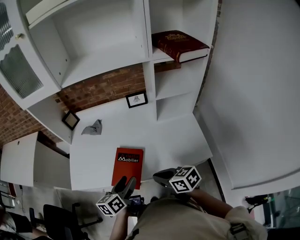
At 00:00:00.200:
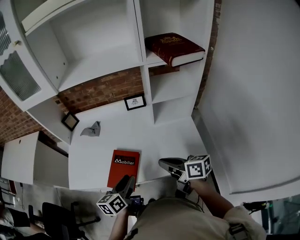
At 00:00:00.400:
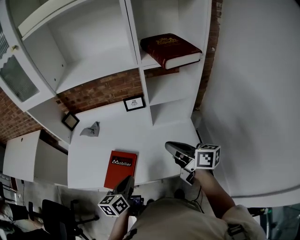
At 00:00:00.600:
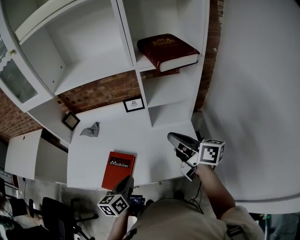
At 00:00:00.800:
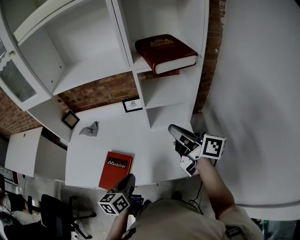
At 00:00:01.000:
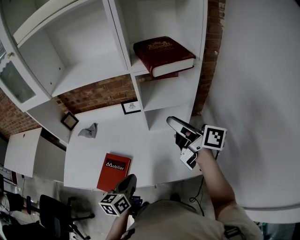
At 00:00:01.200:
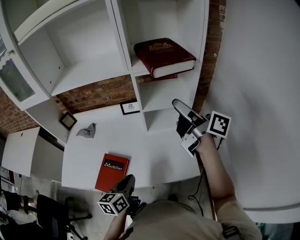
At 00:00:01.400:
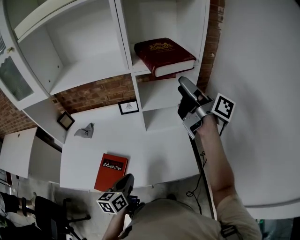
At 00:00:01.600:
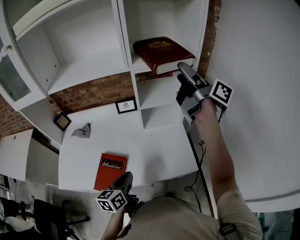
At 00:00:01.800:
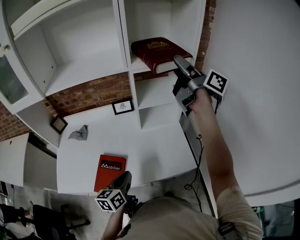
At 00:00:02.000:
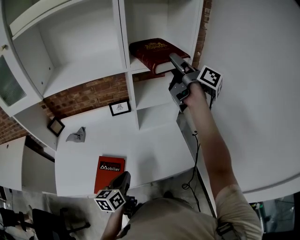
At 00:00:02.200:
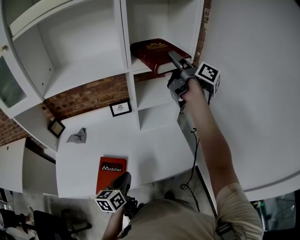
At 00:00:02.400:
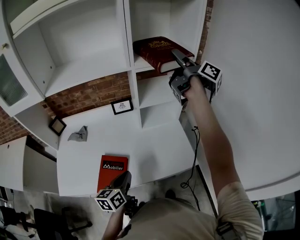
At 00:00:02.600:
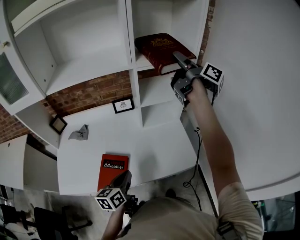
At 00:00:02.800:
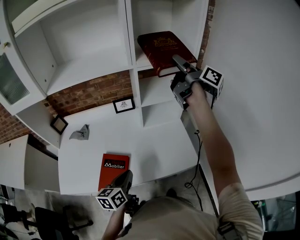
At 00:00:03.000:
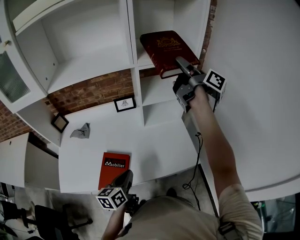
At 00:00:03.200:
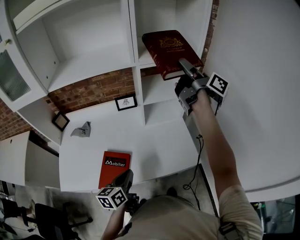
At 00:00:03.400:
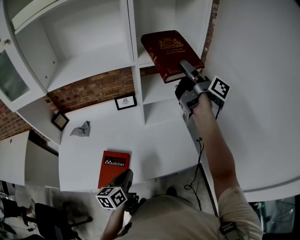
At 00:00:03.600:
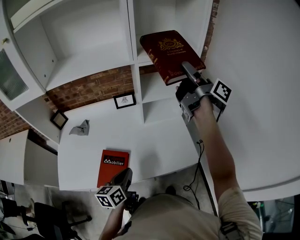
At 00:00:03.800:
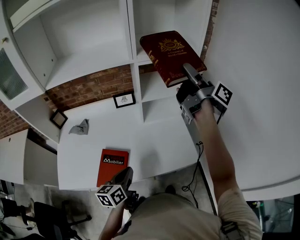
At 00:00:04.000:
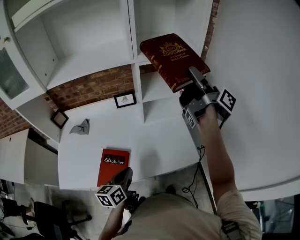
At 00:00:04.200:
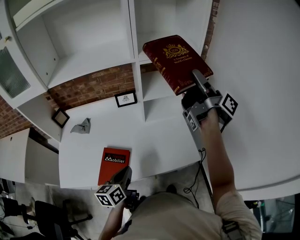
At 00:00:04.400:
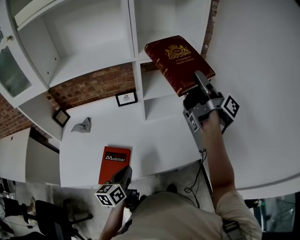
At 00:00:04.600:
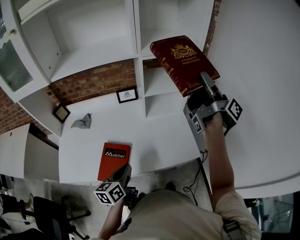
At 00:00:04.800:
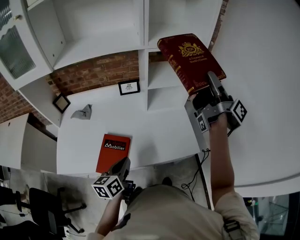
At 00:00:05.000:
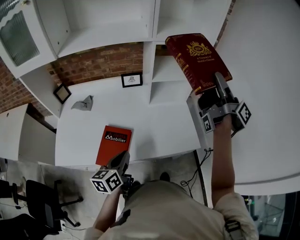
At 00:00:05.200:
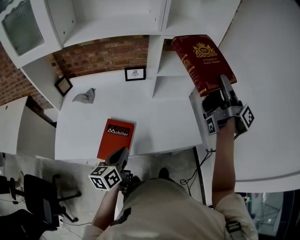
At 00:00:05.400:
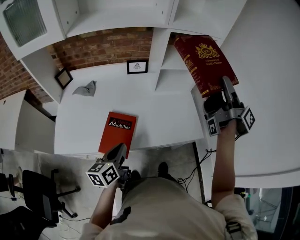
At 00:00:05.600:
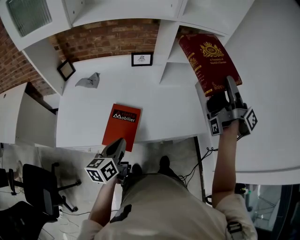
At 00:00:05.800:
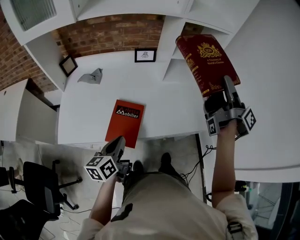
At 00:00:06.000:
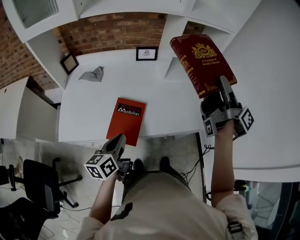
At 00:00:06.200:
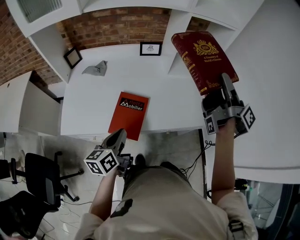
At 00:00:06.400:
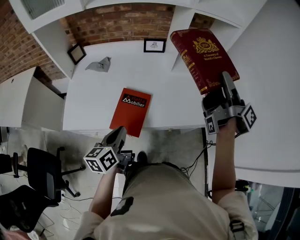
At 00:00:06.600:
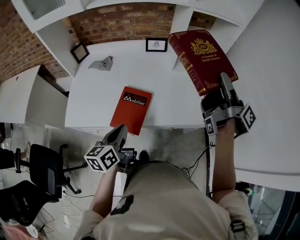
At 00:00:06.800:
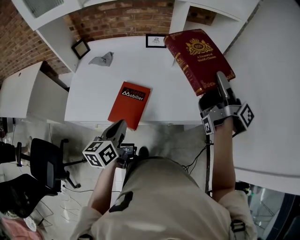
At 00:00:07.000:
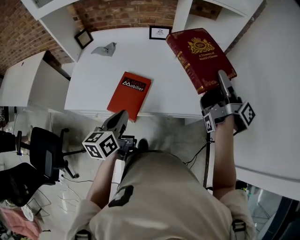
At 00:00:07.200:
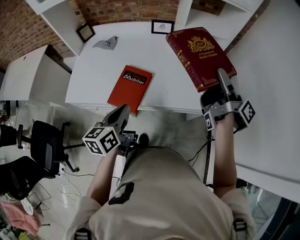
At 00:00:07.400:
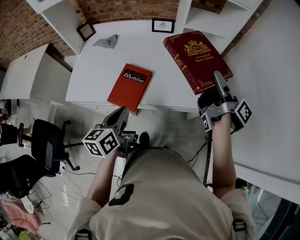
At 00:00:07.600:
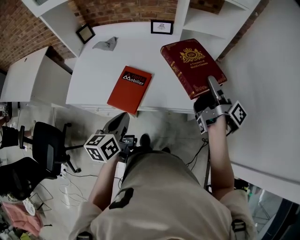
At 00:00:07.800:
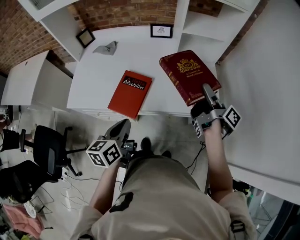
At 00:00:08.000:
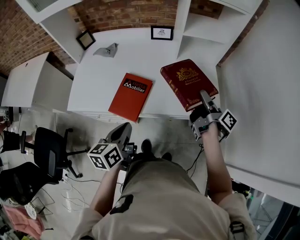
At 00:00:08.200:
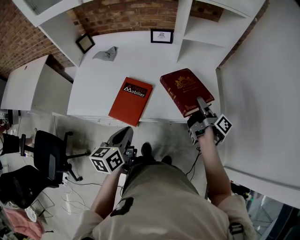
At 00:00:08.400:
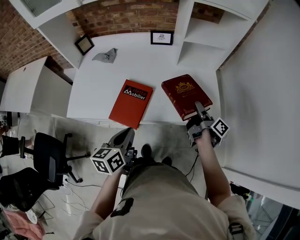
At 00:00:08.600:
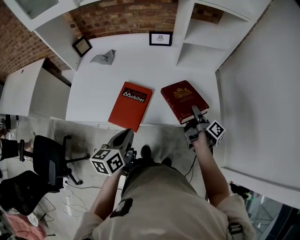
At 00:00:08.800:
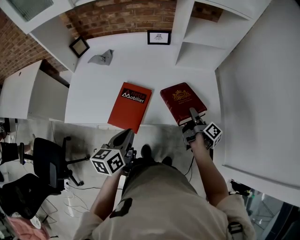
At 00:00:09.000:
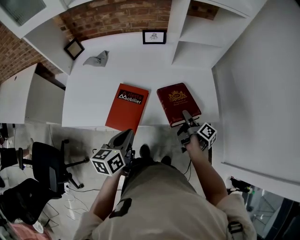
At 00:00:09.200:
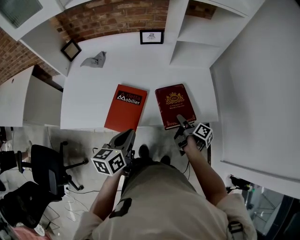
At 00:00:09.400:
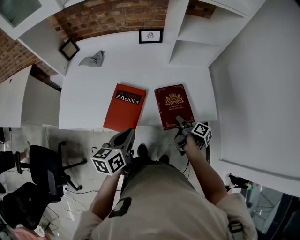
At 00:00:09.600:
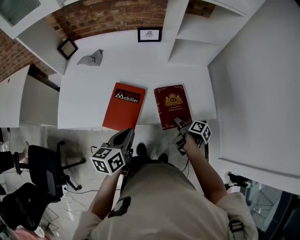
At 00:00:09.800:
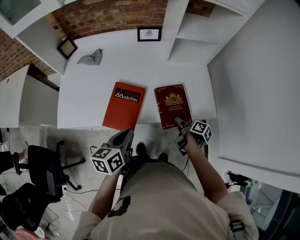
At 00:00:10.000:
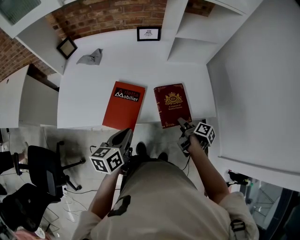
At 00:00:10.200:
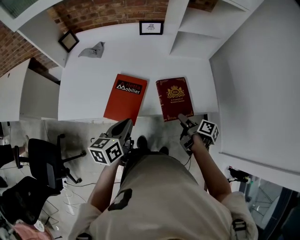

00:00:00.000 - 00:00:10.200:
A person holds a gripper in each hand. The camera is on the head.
00:00:00.000 - 00:00:01.400: The left gripper heads to the right, covering about 15 cm, and closes. Meanwhile the right gripper heads to the right, upward and forward, covering roughly 50 cm, tilts its fingers approximately 50 degrees upward, and opens its fingers.
00:00:03.000 - 00:00:04.400: The right gripper is displaced backward by approximately 10 cm.
00:00:04.400 - 00:00:05.800: The right gripper heads backward, downward and to the left, covering approximately 15 cm, while the left gripper goes roughly 15 cm to the left and backward.
00:00:05.800 - 00:00:07.200: The right gripper travels downward by some 10 cm. Meanwhile the left gripper shifts by about 5 cm.
00:00:07.200 - 00:00:08.800: The right gripper heads downward, covering about 25 cm, and changes its angle by approximately 30 degrees.
00:00:08.800 - 00:00:10.200: The right gripper shifts approximately 10 cm backward, and swivels roughly 20 degrees.

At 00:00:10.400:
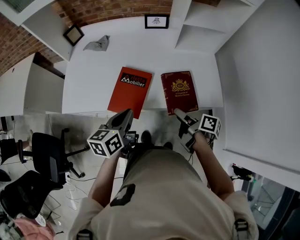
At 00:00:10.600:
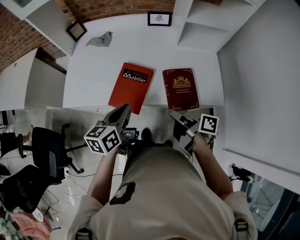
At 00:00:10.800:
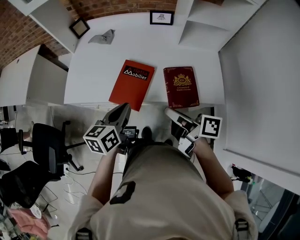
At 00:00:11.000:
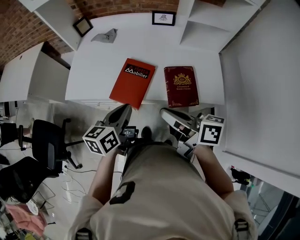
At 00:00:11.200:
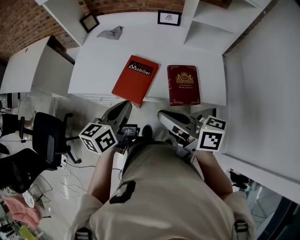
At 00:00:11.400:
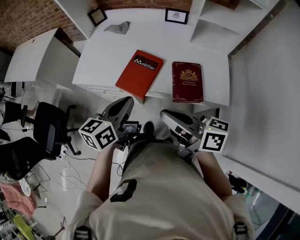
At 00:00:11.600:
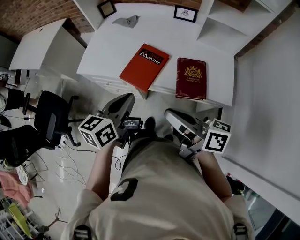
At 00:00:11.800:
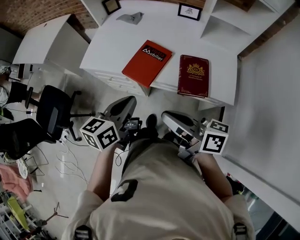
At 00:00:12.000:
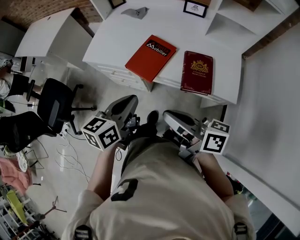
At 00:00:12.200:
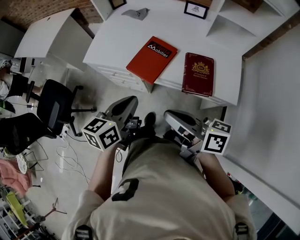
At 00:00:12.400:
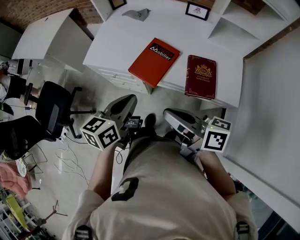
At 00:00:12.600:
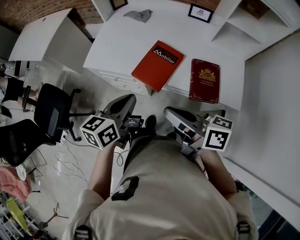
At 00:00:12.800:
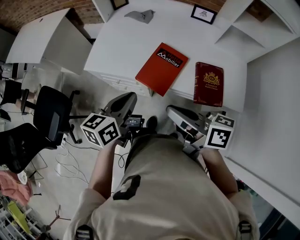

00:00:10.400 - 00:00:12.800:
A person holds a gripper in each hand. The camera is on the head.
00:00:10.400 - 00:00:11.600: The left gripper is displaced backward and upward by roughly 10 cm. Meanwhile the right gripper heads upward, to the left and backward, covering about 25 cm, swivels some 50 degrees, and closes.
00:00:11.600 - 00:00:12.800: The grippers both shift to the left and forward by about 10 cm.

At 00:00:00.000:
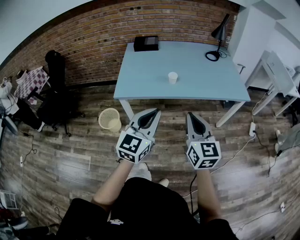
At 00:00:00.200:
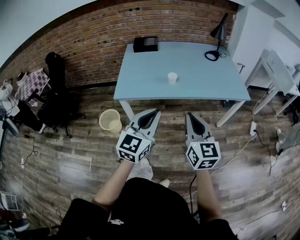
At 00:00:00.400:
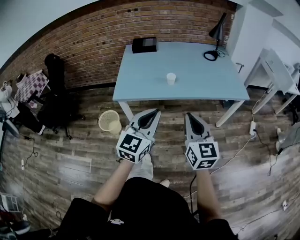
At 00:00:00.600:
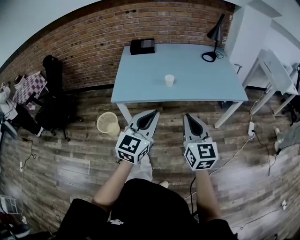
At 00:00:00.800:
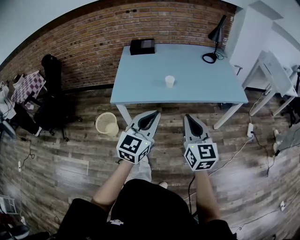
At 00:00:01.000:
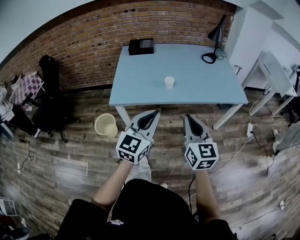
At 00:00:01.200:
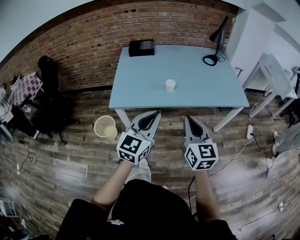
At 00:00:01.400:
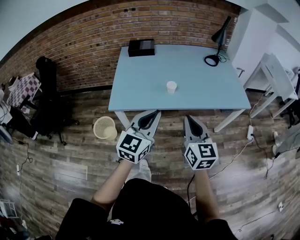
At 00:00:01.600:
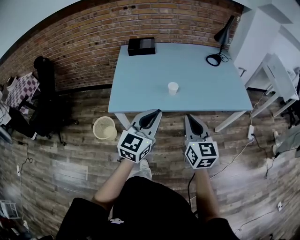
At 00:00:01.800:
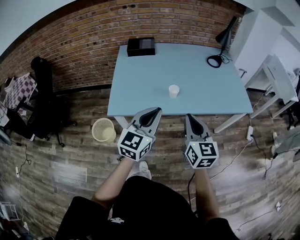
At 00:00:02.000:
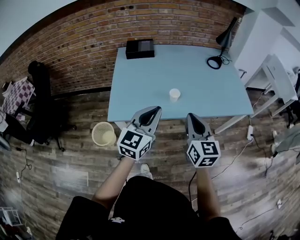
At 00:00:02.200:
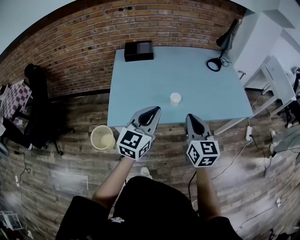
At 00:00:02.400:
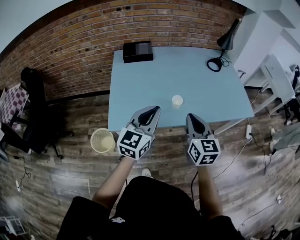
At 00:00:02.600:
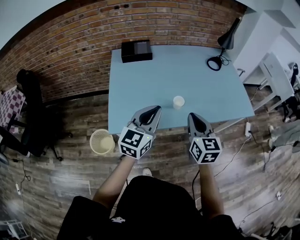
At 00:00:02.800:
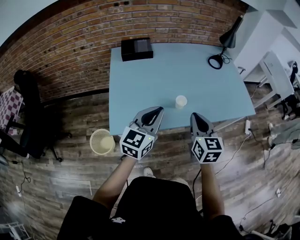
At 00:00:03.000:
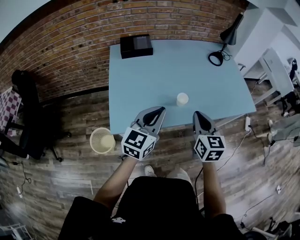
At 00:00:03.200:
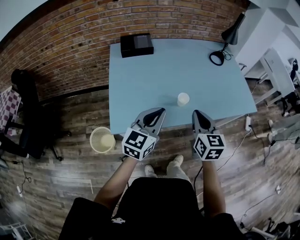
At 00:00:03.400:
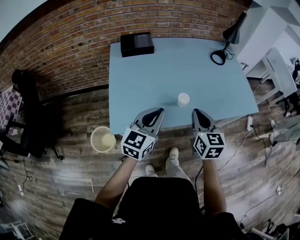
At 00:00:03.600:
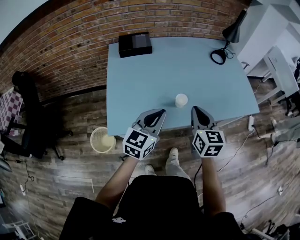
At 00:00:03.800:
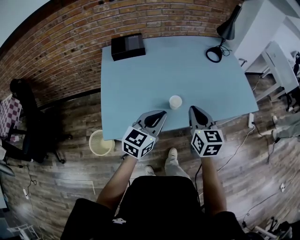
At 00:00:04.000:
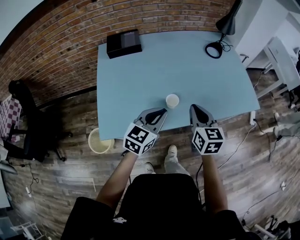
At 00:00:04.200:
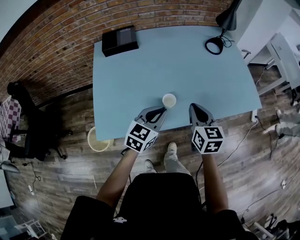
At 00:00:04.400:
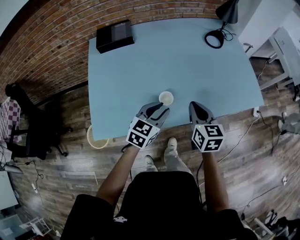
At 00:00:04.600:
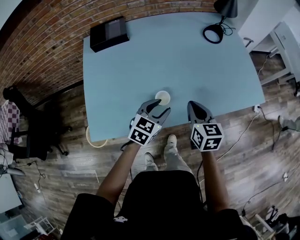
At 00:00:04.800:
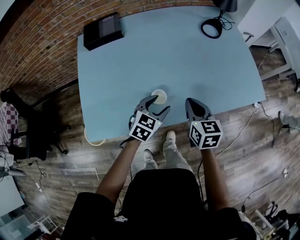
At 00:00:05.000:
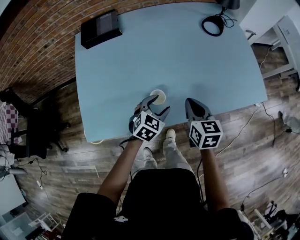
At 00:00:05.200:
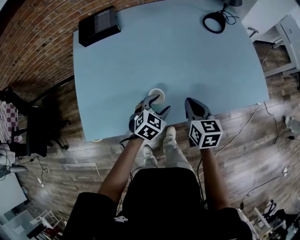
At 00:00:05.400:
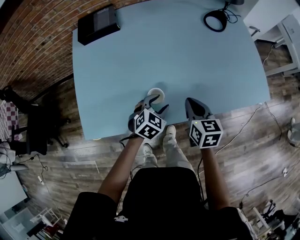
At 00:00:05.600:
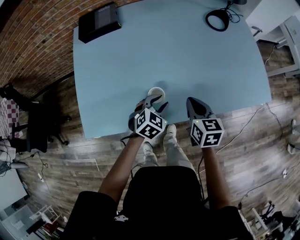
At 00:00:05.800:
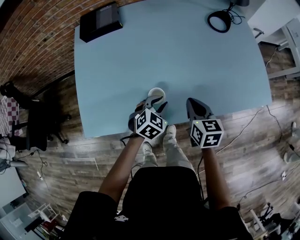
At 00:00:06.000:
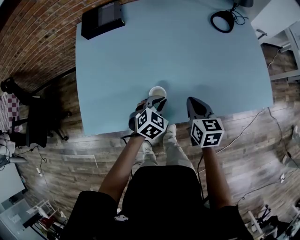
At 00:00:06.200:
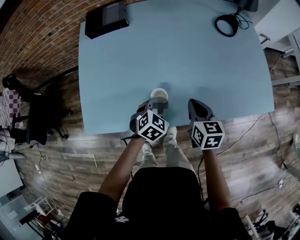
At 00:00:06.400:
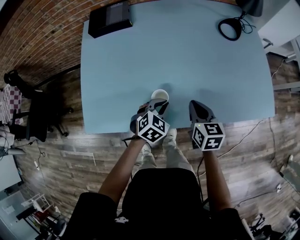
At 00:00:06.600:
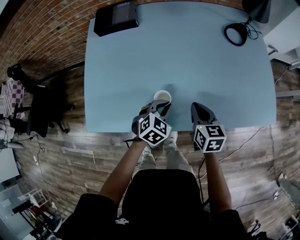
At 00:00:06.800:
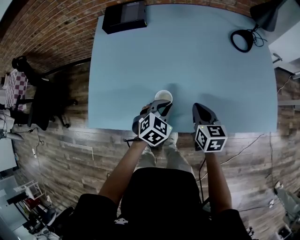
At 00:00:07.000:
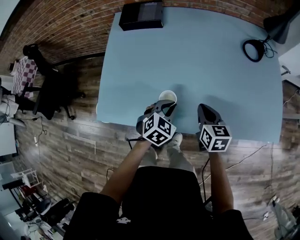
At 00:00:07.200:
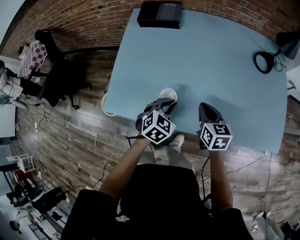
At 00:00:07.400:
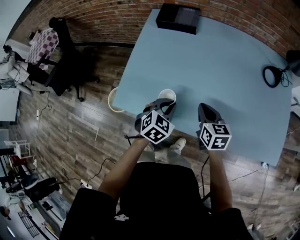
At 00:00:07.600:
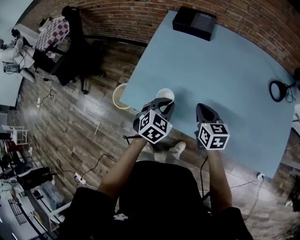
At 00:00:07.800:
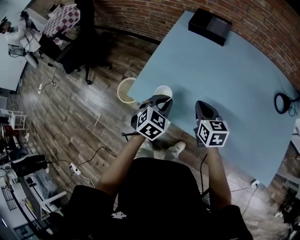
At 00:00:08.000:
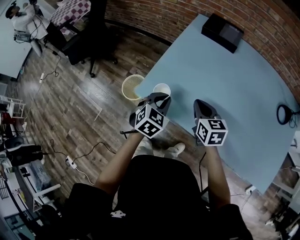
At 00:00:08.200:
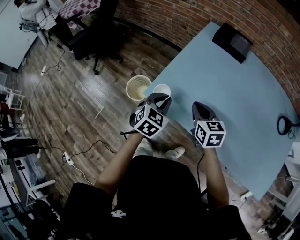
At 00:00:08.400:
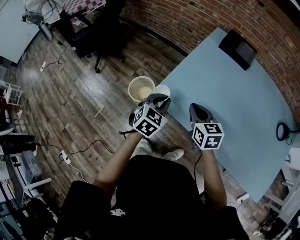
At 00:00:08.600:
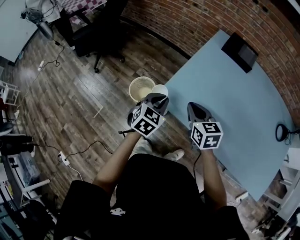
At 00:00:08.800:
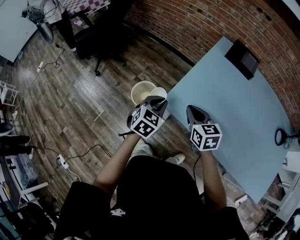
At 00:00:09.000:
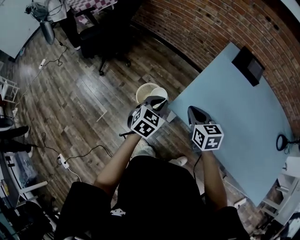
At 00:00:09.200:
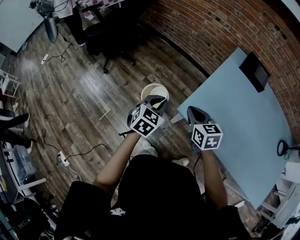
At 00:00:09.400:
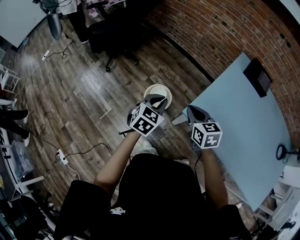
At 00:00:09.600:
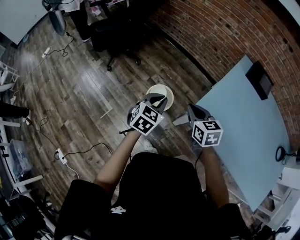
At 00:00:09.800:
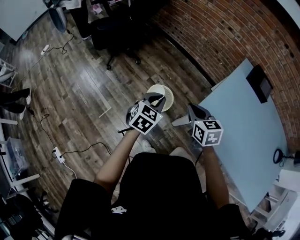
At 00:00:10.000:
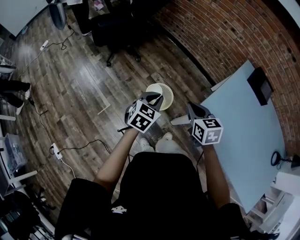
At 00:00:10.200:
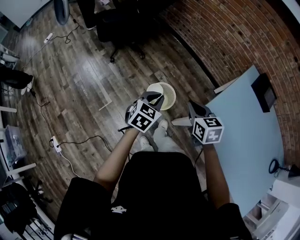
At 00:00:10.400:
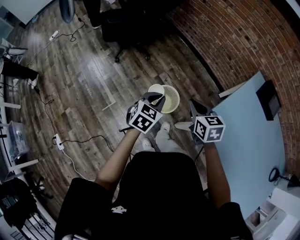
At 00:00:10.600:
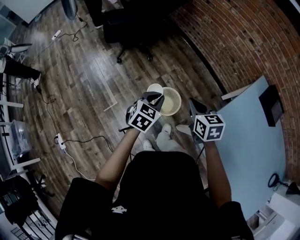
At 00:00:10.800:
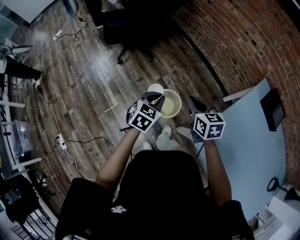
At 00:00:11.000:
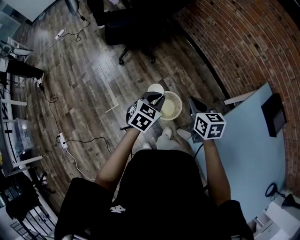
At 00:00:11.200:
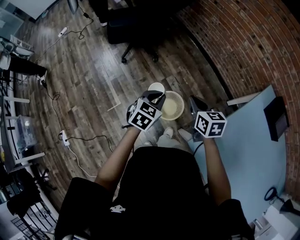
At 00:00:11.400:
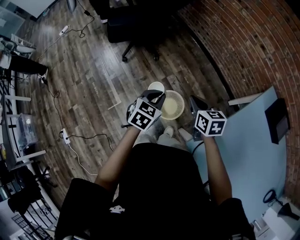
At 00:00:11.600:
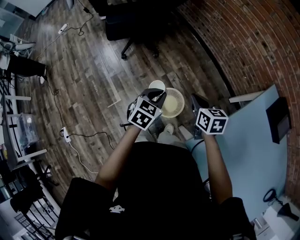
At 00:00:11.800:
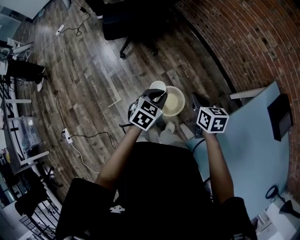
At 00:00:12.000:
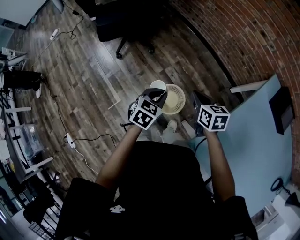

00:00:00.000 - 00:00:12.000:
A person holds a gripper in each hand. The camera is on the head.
00:00:00.000 - 00:00:01.600: Both grippers travel together forward, some 15 cm.
00:00:01.600 - 00:00:03.000: The grippers both shift forward and to the left by about 20 cm.
00:00:03.000 - 00:00:04.400: The grippers both shift forward, downward and to the right by some 20 cm. The left gripper changes its angle by roughly 20 degrees, and opens up.
00:00:04.400 - 00:00:06.000: Both grippers move downward and forward, some 15 cm. The left gripper swivels approximately 30 degrees, and opens, then closes again.
00:00:06.000 - 00:00:07.600: The right gripper changes place by about 20 cm, and turns by roughly 30 degrees; the left gripper moves approximately 20 cm, and rotates about 30 degrees.
00:00:07.600 - 00:00:09.000: The grippers both shift to the left by about 35 cm. The left gripper turns by roughly 20 degrees. The right gripper changes its angle by some 20 degrees.
00:00:09.000 - 00:00:10.400: The two grippers go some 20 cm to the left and forward.
00:00:10.400 - 00:00:12.000: Both grippers travel together forward and downward, about 15 cm.
